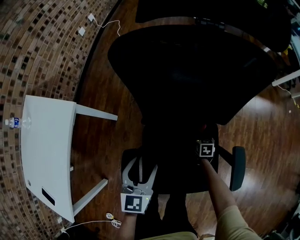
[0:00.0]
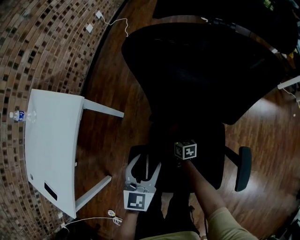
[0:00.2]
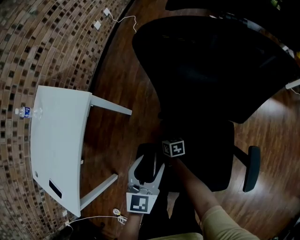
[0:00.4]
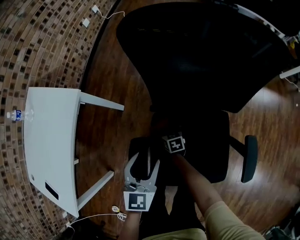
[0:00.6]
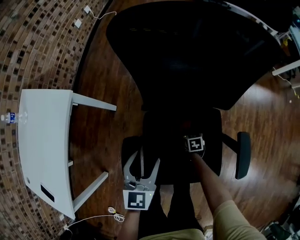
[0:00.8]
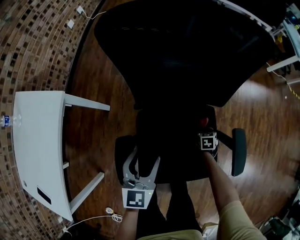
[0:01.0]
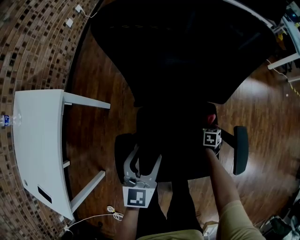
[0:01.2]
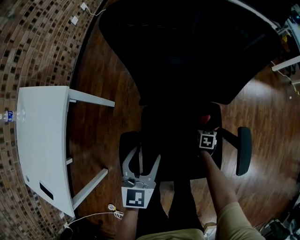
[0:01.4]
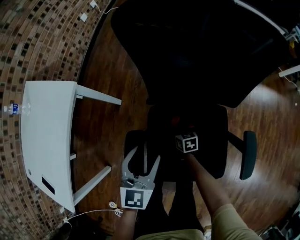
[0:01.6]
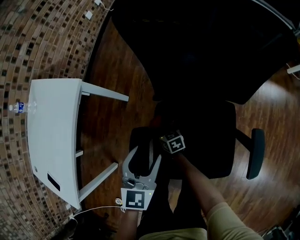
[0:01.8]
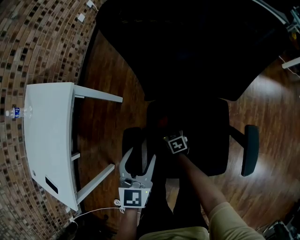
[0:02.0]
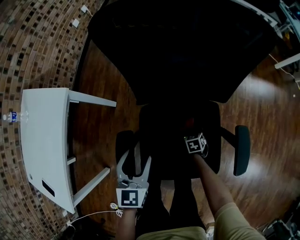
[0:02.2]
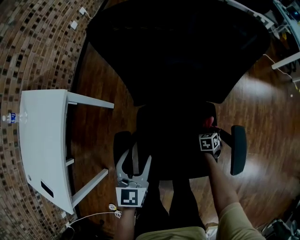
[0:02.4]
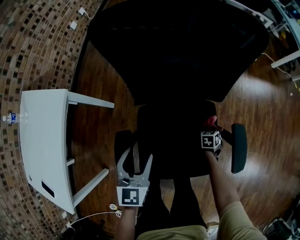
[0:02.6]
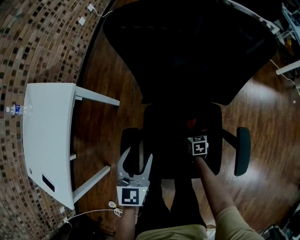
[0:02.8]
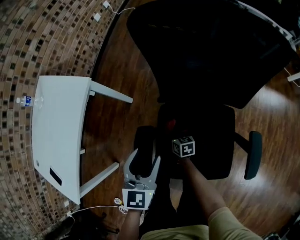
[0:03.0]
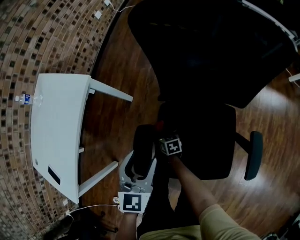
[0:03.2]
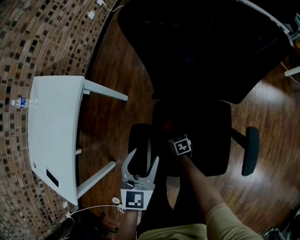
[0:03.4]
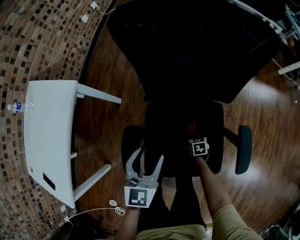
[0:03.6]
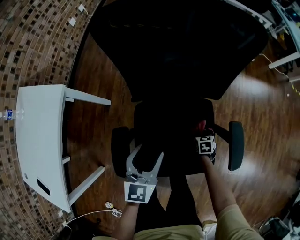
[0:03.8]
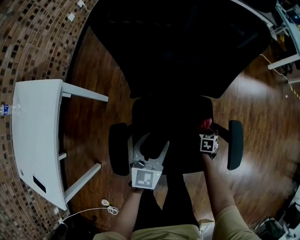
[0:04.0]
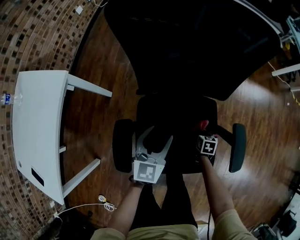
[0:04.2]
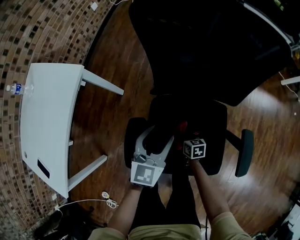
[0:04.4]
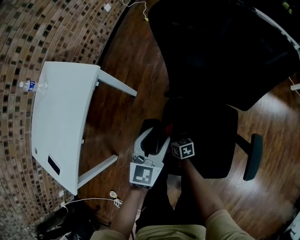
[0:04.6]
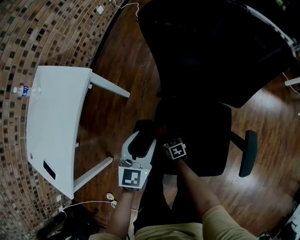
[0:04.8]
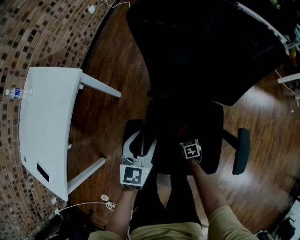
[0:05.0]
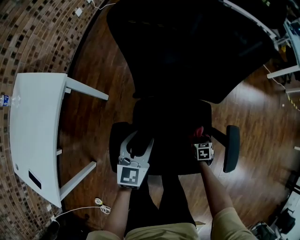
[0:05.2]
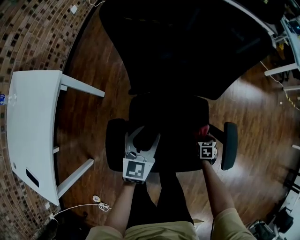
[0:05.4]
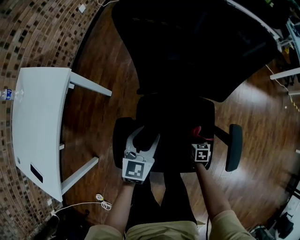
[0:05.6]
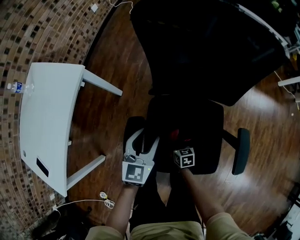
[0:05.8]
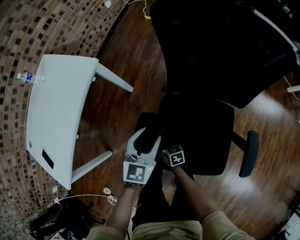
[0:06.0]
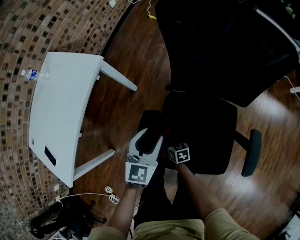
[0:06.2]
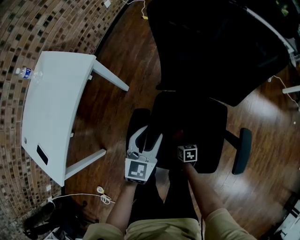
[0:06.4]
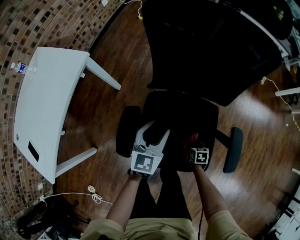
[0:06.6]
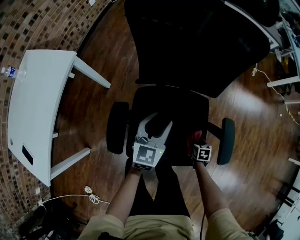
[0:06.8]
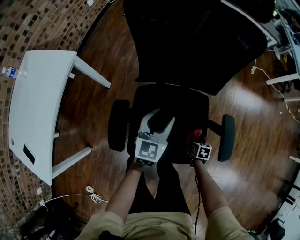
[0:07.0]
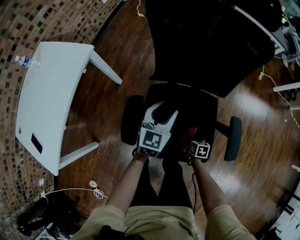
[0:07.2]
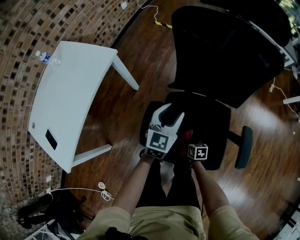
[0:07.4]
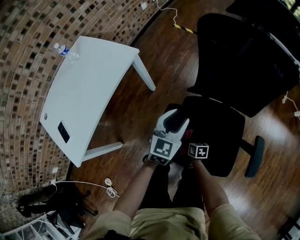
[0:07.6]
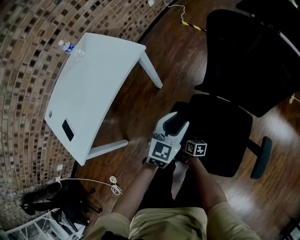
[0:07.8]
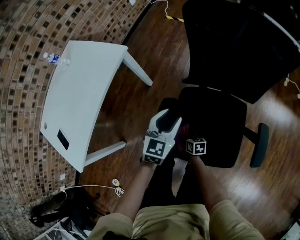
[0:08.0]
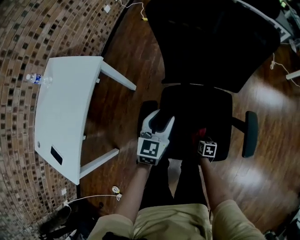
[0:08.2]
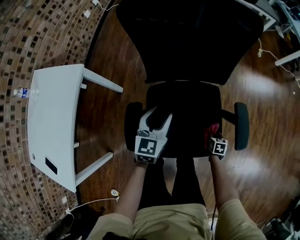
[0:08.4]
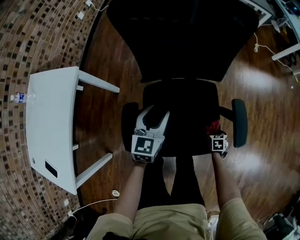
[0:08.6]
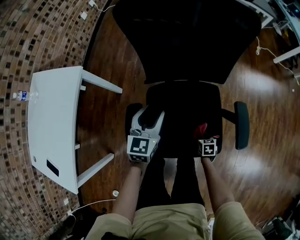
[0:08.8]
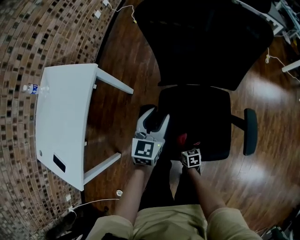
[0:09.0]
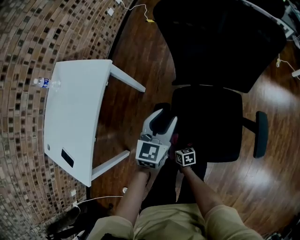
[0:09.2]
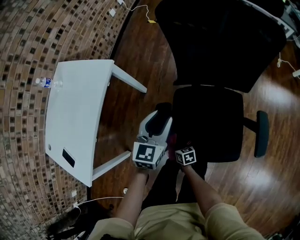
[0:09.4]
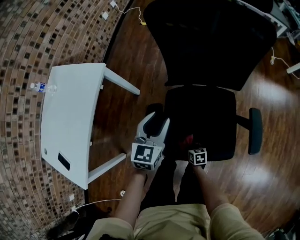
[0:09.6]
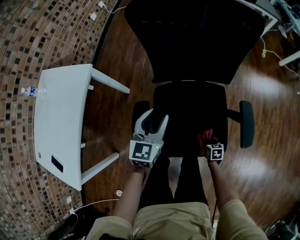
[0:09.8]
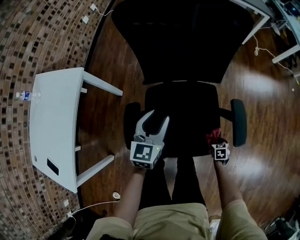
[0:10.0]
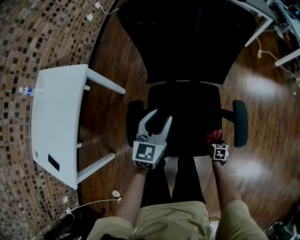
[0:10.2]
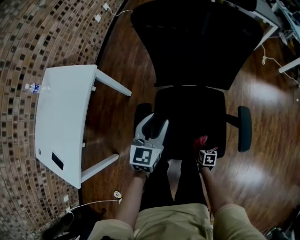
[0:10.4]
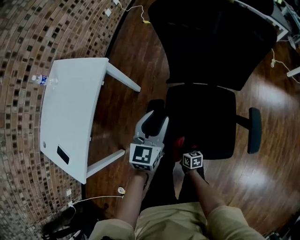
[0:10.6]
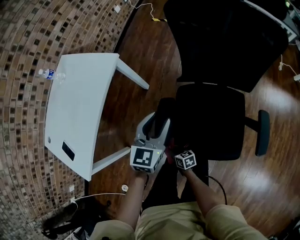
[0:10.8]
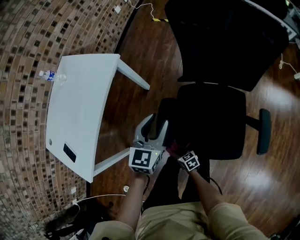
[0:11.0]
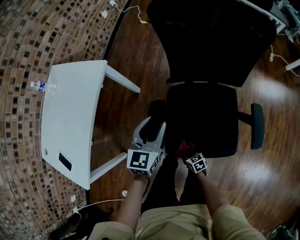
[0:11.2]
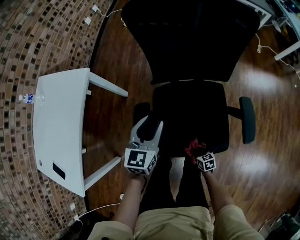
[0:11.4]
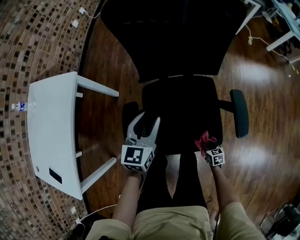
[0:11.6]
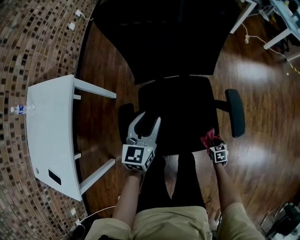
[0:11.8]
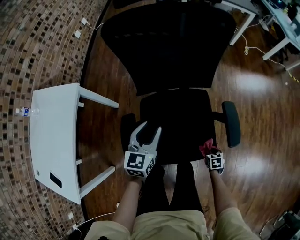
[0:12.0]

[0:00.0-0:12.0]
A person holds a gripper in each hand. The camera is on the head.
0:00.0 to 0:01.6: The right gripper swivels approximately 20 degrees.
0:04.4 to 0:06.0: The right gripper shifts by some 15 cm. Meanwhile the left gripper changes place by roughly 10 cm.

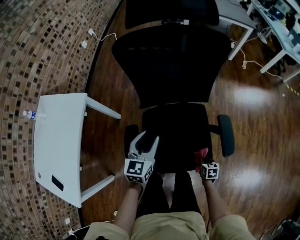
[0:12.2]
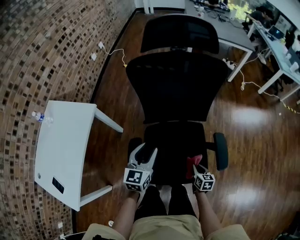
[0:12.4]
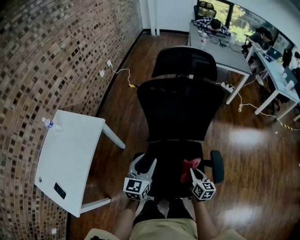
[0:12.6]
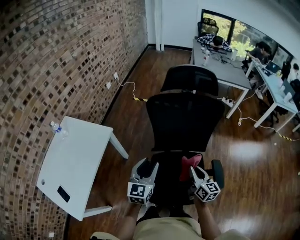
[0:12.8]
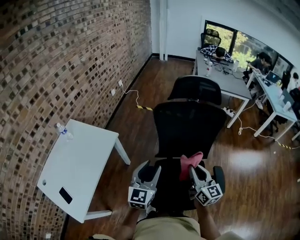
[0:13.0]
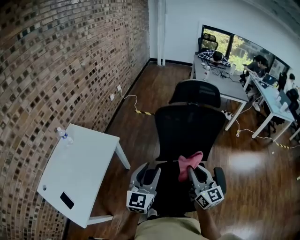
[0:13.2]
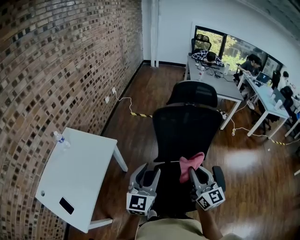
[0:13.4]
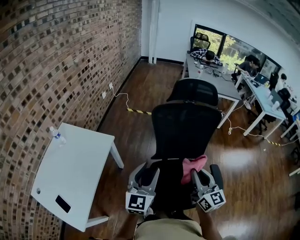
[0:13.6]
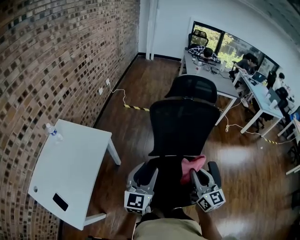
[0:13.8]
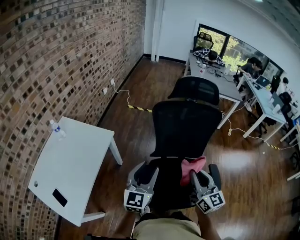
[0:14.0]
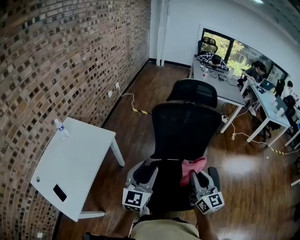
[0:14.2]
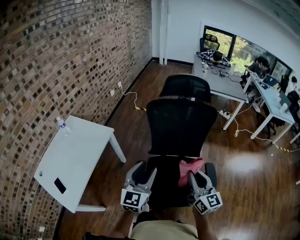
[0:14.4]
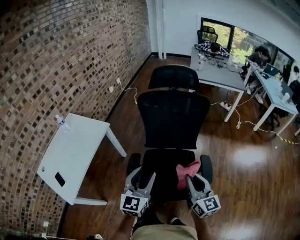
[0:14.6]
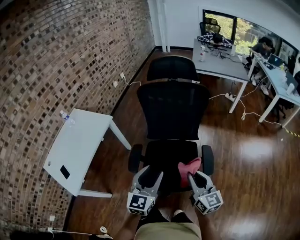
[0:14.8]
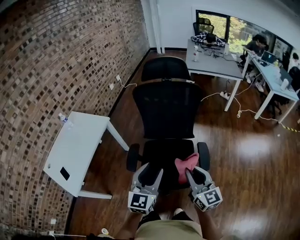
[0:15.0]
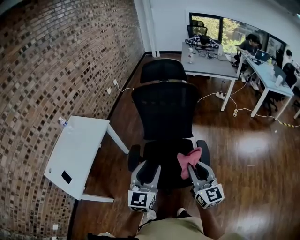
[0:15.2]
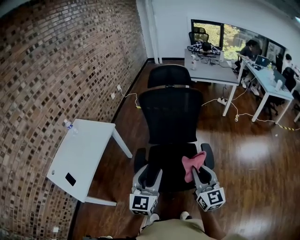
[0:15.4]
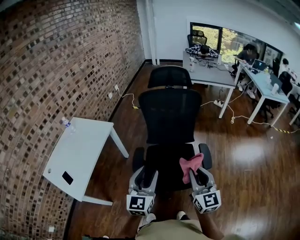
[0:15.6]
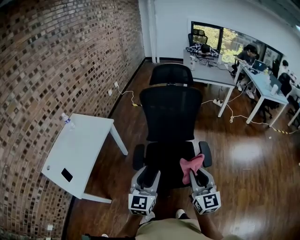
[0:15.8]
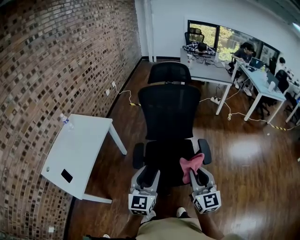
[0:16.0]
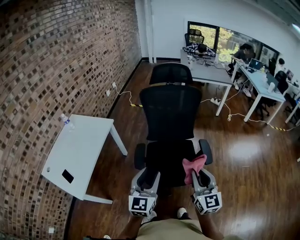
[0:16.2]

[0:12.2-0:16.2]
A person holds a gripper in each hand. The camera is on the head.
0:12.2 to 0:13.6: The right gripper heads upward and to the left, covering approximately 60 cm, and points its fingers some 60 degrees further upward. The left gripper shifts approximately 25 cm upward and to the left, and turns by approximately 30 degrees.
0:13.6 to 0:14.8: The grippers both shift to the right and backward by roughly 25 cm.
0:14.8 to 0:16.2: The left gripper travels to the left and backward by approximately 15 cm. Meanwhile the right gripper is displaced backward, to the left and upward by about 15 cm, and turns by some 20 degrees.

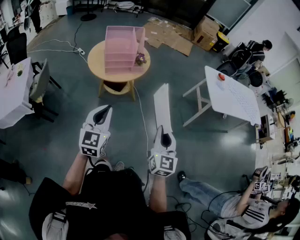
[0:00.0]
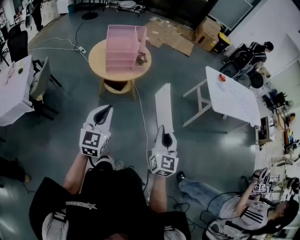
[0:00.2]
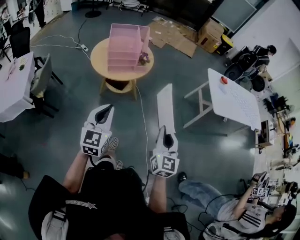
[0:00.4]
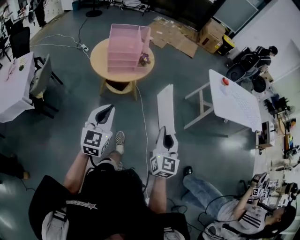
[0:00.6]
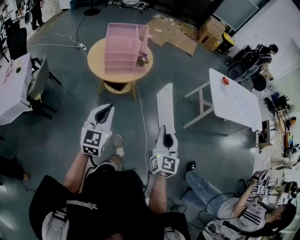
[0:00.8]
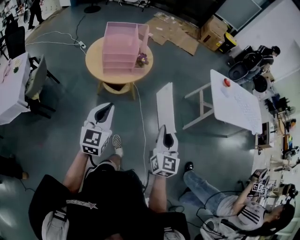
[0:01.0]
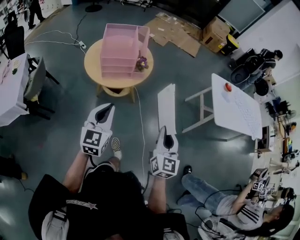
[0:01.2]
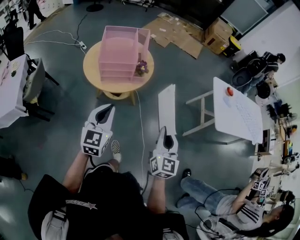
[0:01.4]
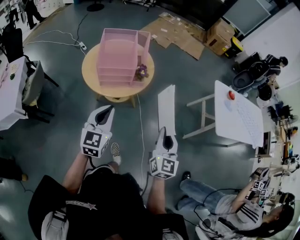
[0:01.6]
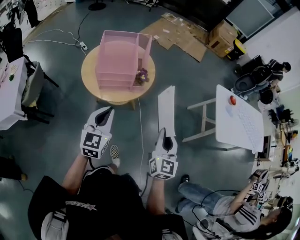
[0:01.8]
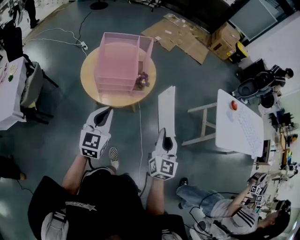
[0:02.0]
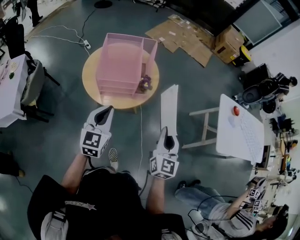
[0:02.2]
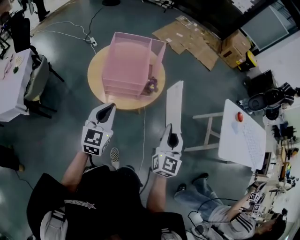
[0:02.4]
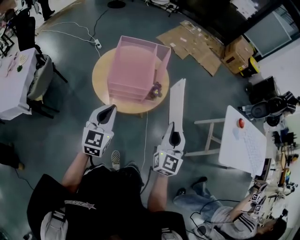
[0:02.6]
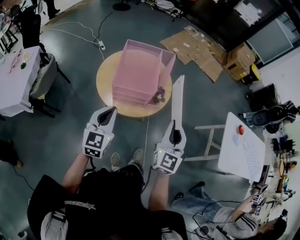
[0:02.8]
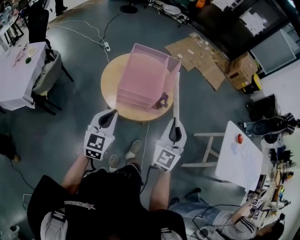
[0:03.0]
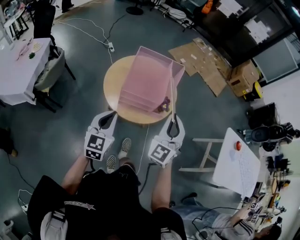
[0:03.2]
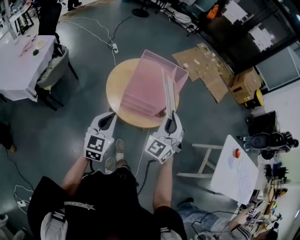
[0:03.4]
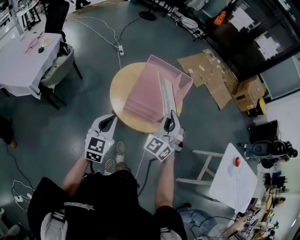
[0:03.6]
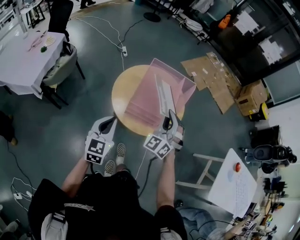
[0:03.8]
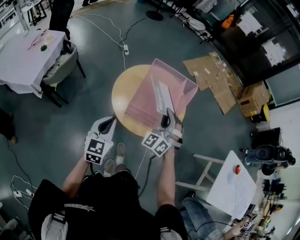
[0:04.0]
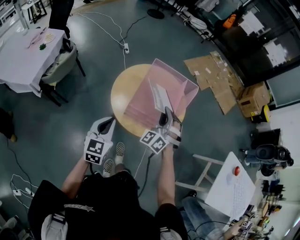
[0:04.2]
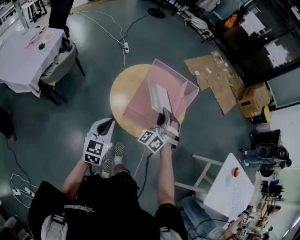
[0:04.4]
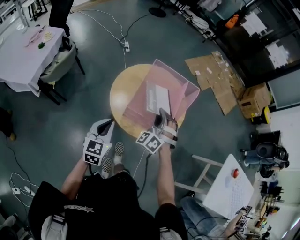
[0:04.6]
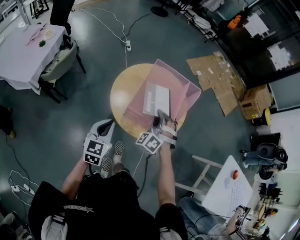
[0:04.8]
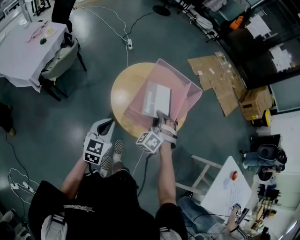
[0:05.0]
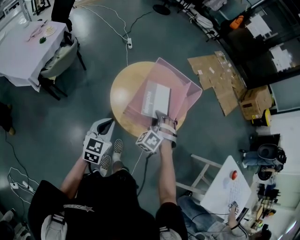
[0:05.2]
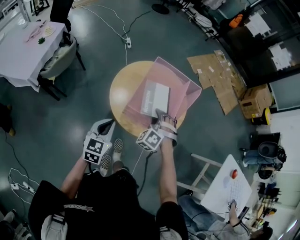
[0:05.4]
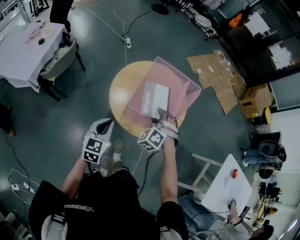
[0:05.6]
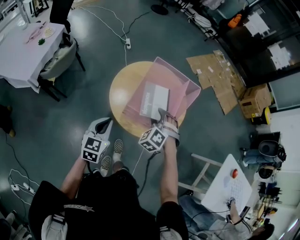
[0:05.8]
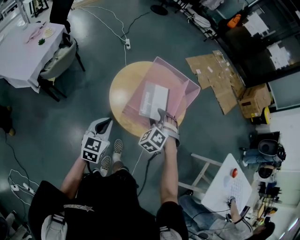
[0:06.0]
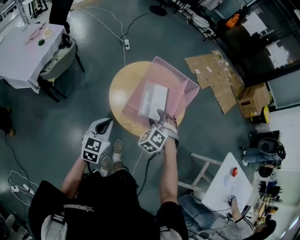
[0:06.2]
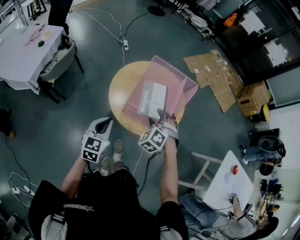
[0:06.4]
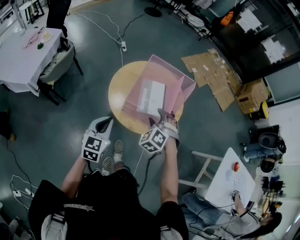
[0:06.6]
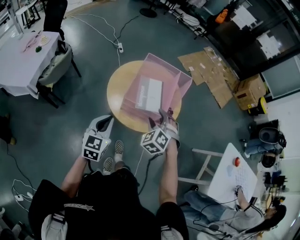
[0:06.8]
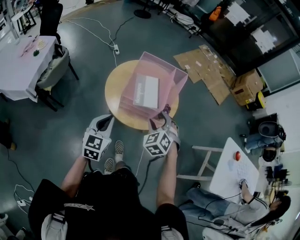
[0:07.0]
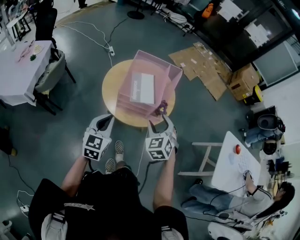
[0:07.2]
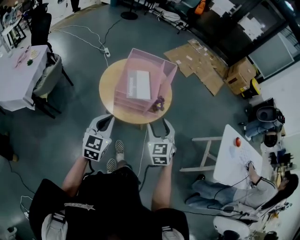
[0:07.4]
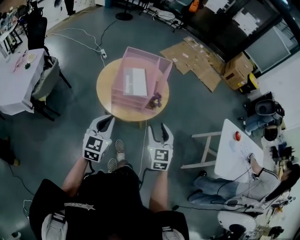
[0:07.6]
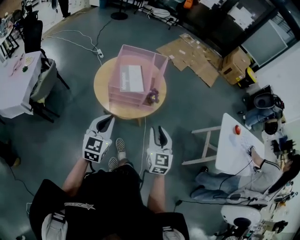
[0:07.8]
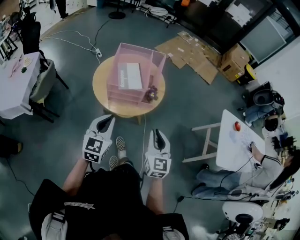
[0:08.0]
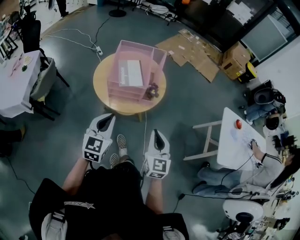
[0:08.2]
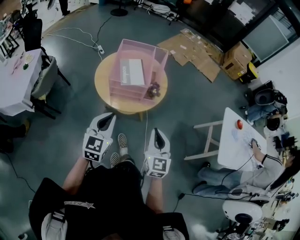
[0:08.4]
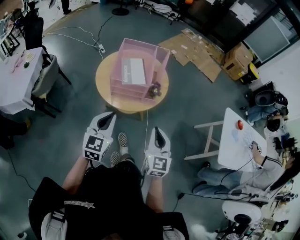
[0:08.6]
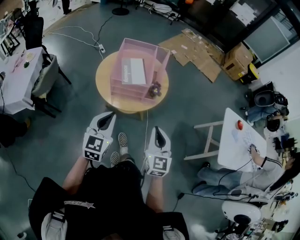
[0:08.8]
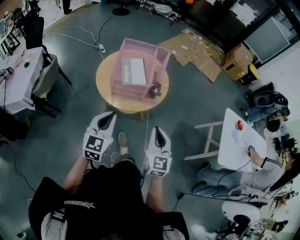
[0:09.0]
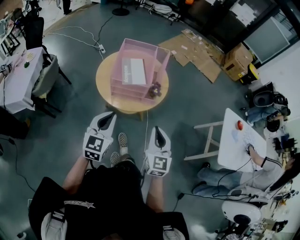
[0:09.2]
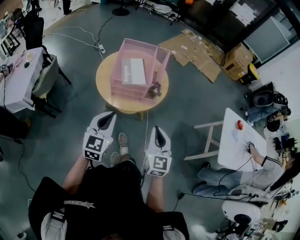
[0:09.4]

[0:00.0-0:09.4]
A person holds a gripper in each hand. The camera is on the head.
0:00.0 to 0:01.6: Both grippers move forward, about 20 cm.
0:01.6 to 0:03.2: The left gripper shifts some 15 cm to the left and forward. Meanwhile the right gripper shifts roughly 25 cm forward and to the left, and changes its angle by some 40 degrees.
0:03.2 to 0:04.8: The right gripper travels downward, forward and to the left by roughly 25 cm, and twists roughly 40 degrees counterclockwise, seen from behind. Meanwhile the left gripper moves downward, about 5 cm.
0:04.8 to 0:06.2: The right gripper turns by some 20 degrees, and opens its fingers.
0:06.2 to 0:07.8: The left gripper shifts roughly 15 cm to the right, backward and upward. Meanwhile the right gripper is displaced backward and to the right by roughly 25 cm, rotates around the line of its fingers by roughly 70 degrees, clockwise from behind, and closes up.
0:07.8 to 0:09.4: The right gripper closes.
